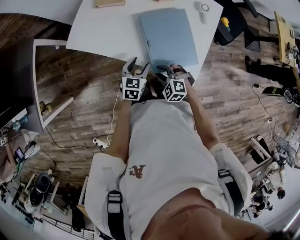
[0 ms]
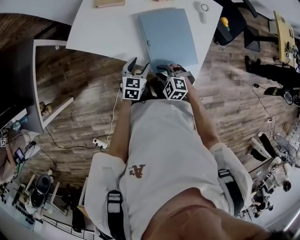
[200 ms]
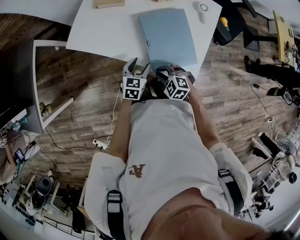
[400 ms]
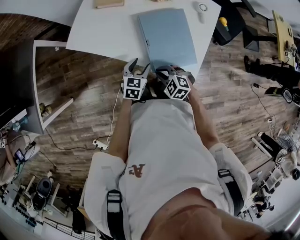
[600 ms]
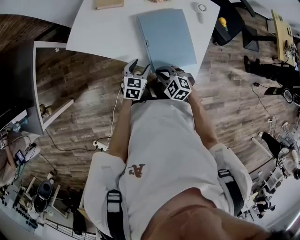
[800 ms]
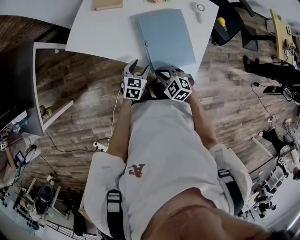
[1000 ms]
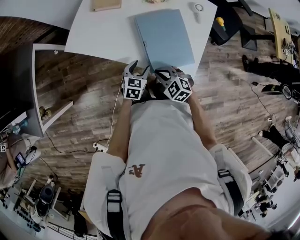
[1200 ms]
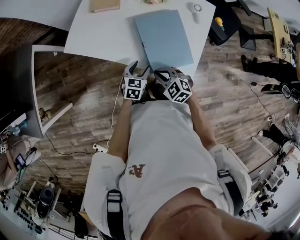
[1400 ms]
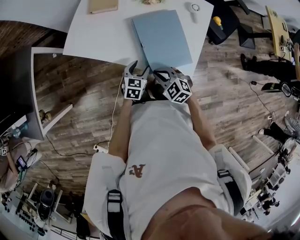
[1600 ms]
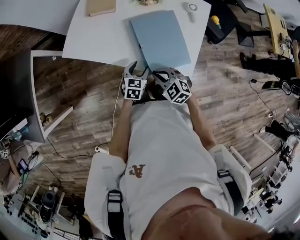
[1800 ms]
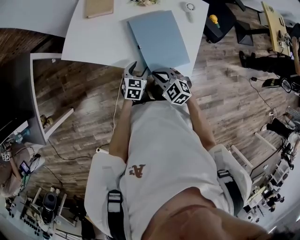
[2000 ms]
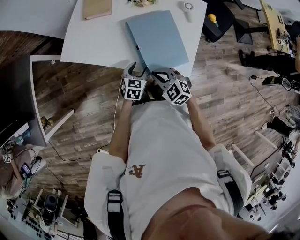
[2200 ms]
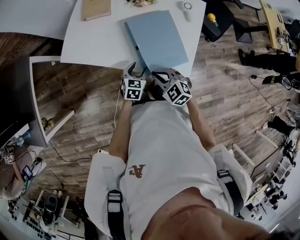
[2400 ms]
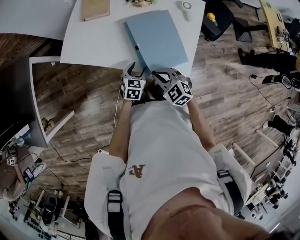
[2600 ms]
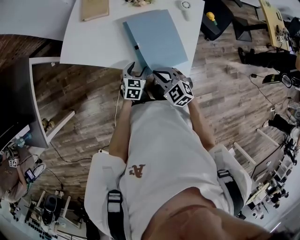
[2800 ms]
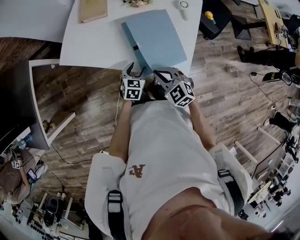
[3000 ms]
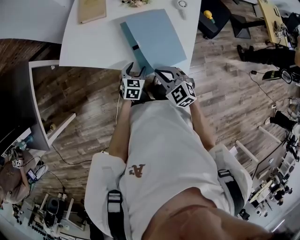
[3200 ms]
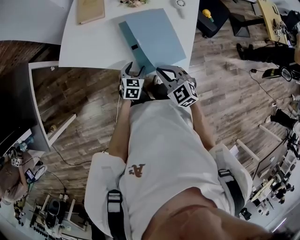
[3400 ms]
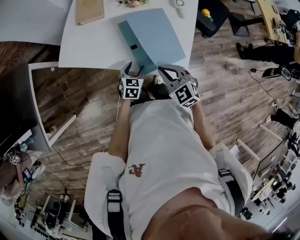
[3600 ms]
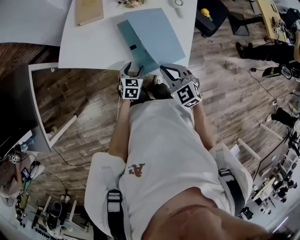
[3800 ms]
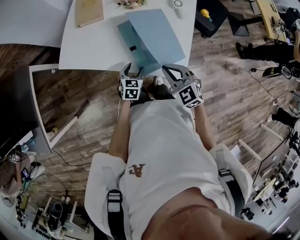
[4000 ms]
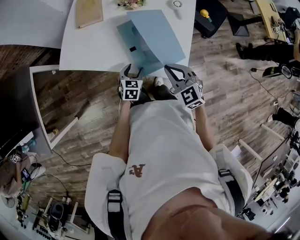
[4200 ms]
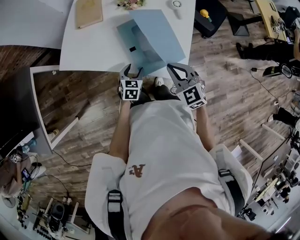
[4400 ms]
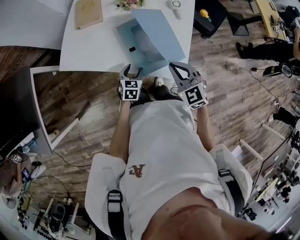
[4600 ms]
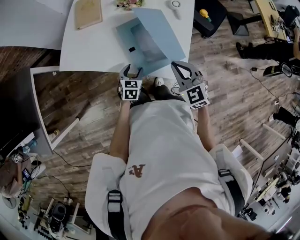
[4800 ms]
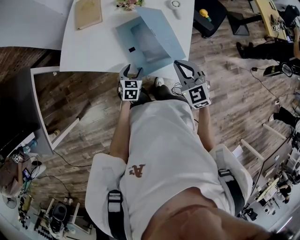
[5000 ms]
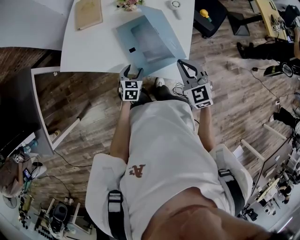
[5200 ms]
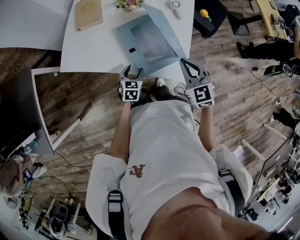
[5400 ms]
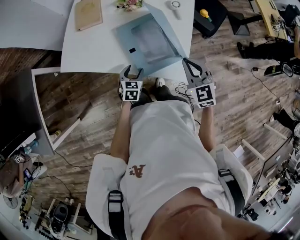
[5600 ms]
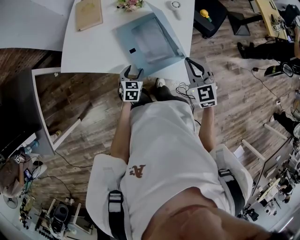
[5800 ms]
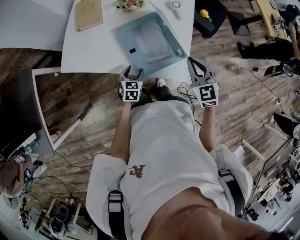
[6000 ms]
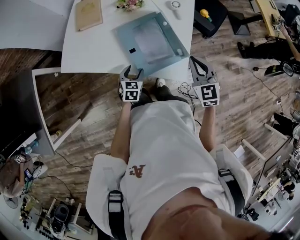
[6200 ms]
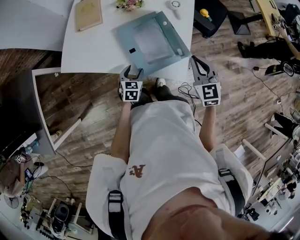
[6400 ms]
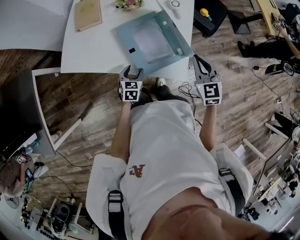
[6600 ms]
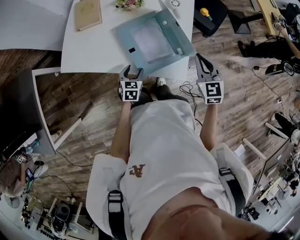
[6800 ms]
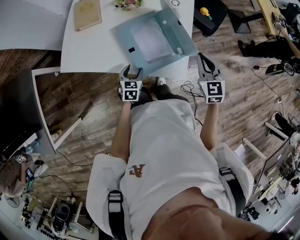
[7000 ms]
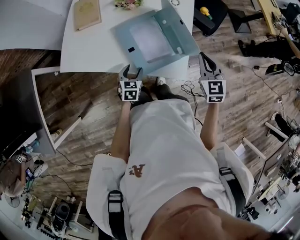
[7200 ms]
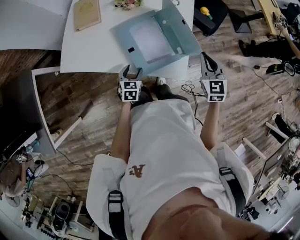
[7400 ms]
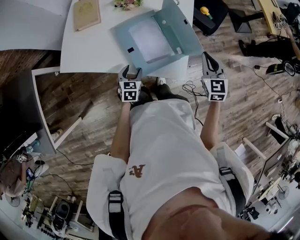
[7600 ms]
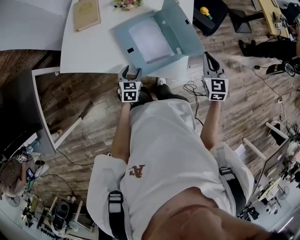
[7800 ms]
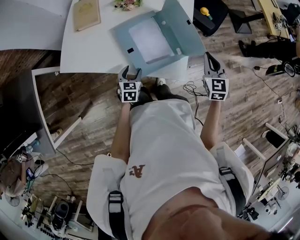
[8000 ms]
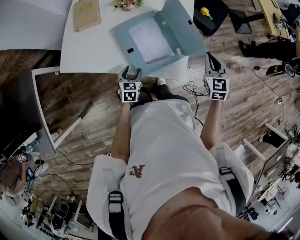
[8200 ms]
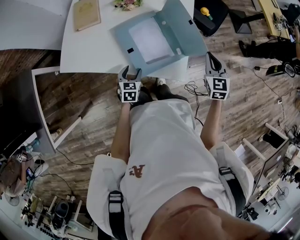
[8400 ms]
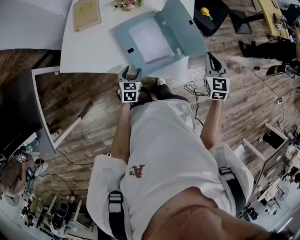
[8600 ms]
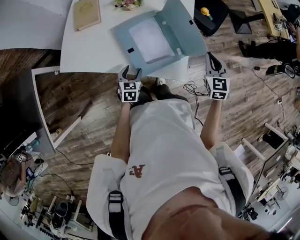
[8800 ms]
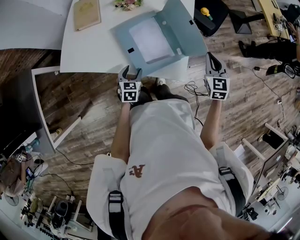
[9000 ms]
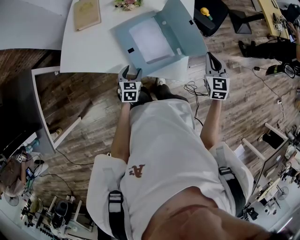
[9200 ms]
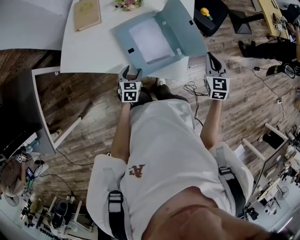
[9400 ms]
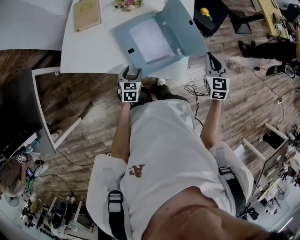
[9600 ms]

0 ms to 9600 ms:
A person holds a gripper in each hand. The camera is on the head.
0 ms to 1600 ms: The right gripper shifts about 5 cm upward, and closes its fingers.
1600 ms to 3200 ms: The right gripper moves upward, approximately 5 cm.
3200 ms to 4800 ms: The right gripper heads to the right and upward, covering some 10 cm.
4800 ms to 6400 ms: The right gripper heads to the right, covering some 10 cm.
6400 ms to 8000 ms: The right gripper goes about 10 cm to the right.
8000 ms to 9600 ms: Both grippers stay put.

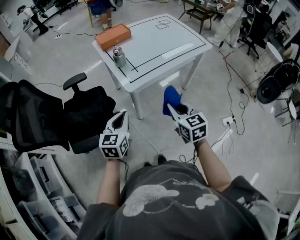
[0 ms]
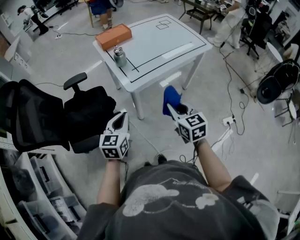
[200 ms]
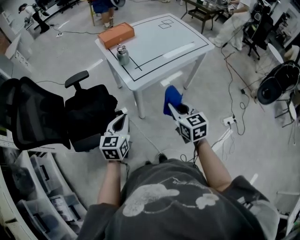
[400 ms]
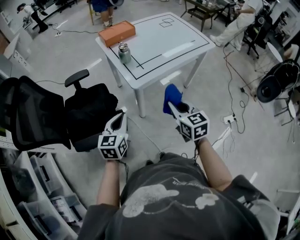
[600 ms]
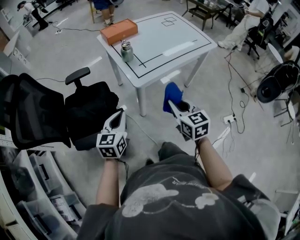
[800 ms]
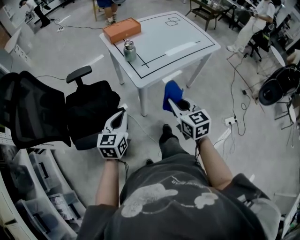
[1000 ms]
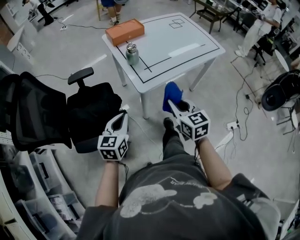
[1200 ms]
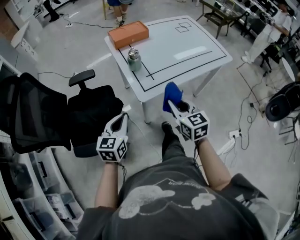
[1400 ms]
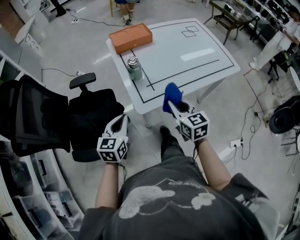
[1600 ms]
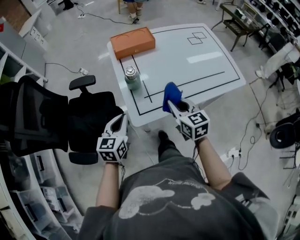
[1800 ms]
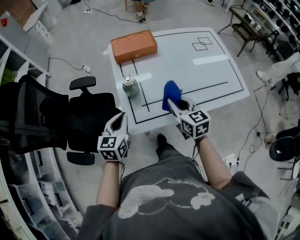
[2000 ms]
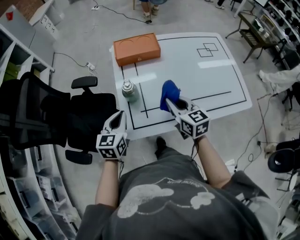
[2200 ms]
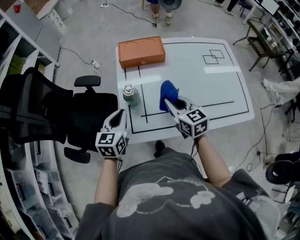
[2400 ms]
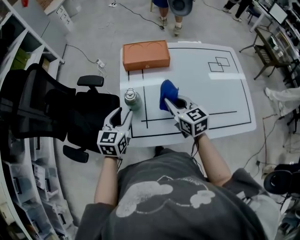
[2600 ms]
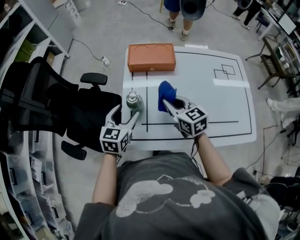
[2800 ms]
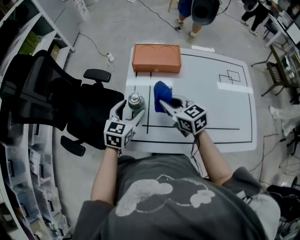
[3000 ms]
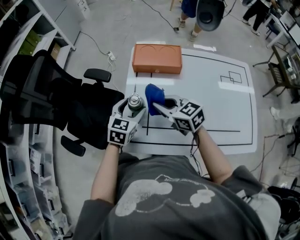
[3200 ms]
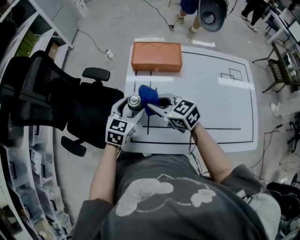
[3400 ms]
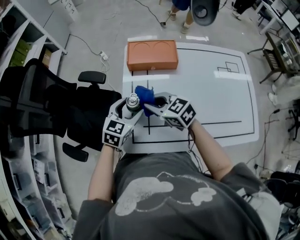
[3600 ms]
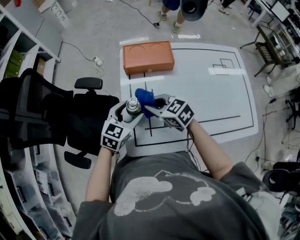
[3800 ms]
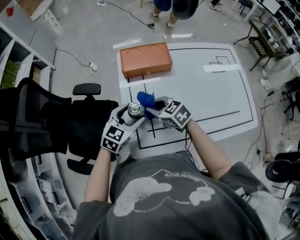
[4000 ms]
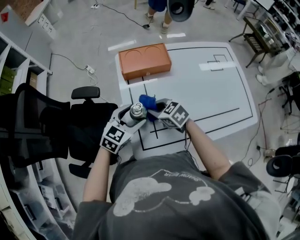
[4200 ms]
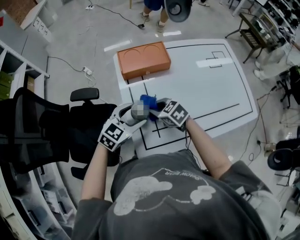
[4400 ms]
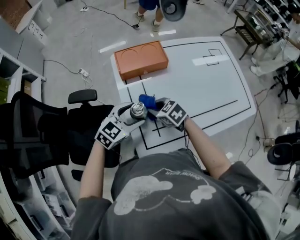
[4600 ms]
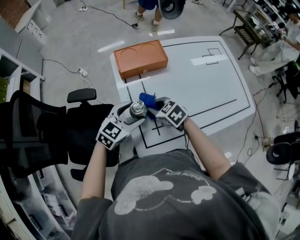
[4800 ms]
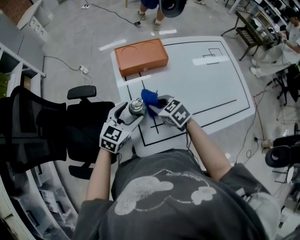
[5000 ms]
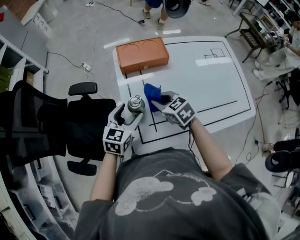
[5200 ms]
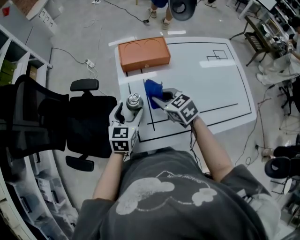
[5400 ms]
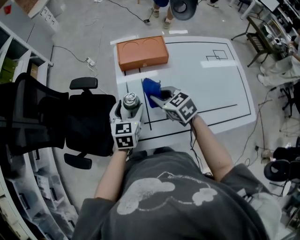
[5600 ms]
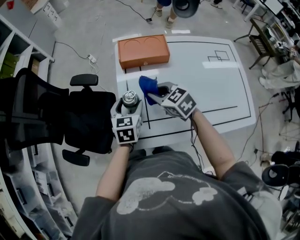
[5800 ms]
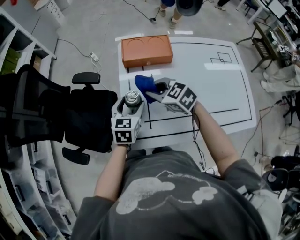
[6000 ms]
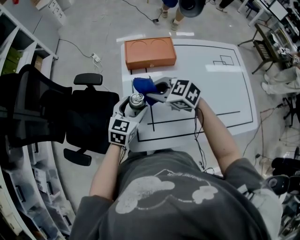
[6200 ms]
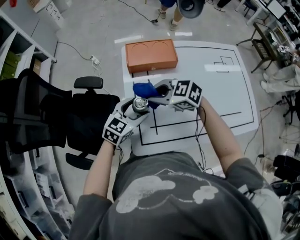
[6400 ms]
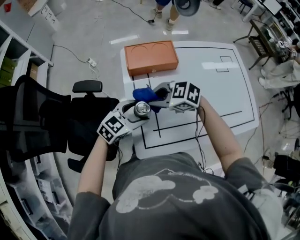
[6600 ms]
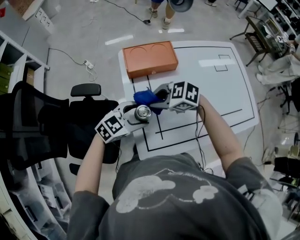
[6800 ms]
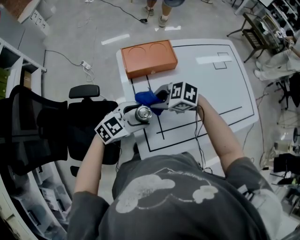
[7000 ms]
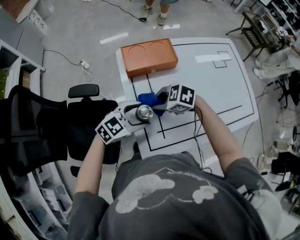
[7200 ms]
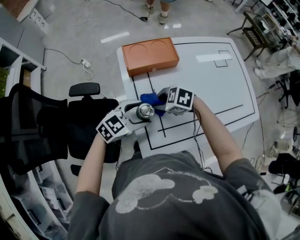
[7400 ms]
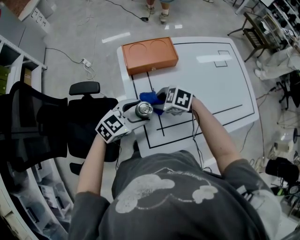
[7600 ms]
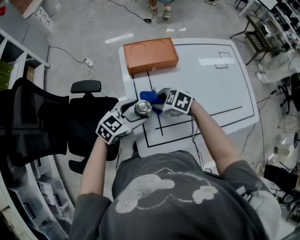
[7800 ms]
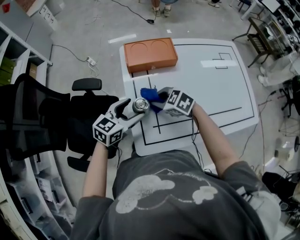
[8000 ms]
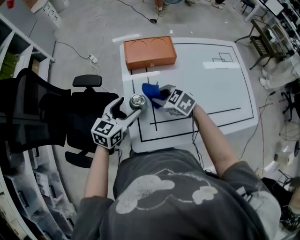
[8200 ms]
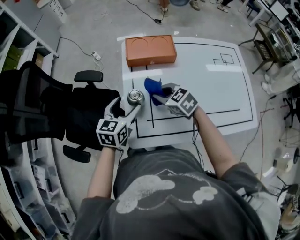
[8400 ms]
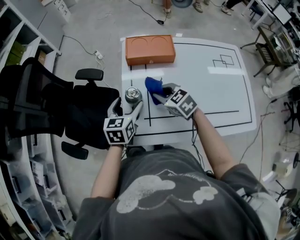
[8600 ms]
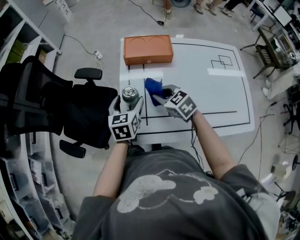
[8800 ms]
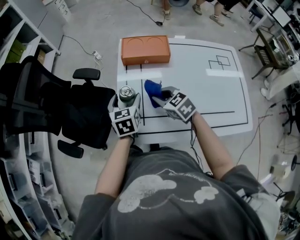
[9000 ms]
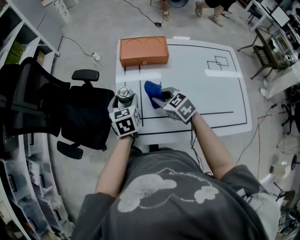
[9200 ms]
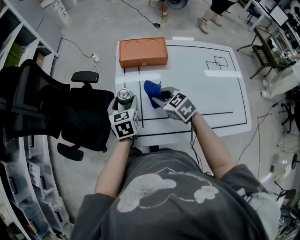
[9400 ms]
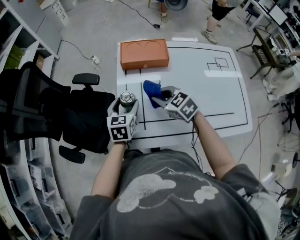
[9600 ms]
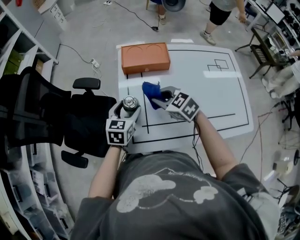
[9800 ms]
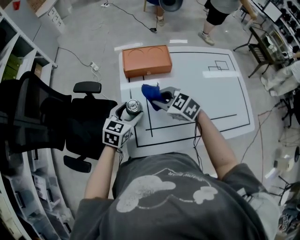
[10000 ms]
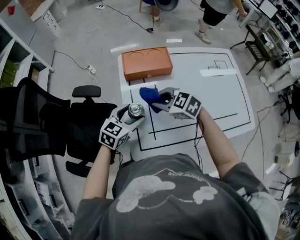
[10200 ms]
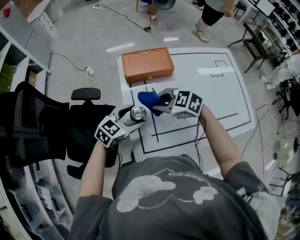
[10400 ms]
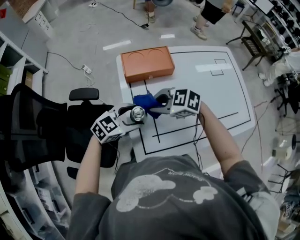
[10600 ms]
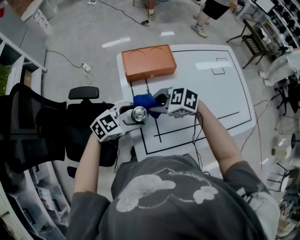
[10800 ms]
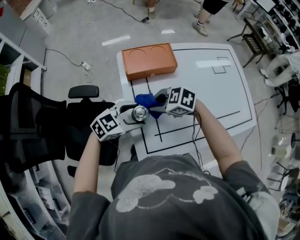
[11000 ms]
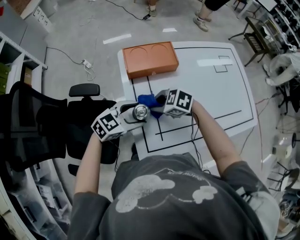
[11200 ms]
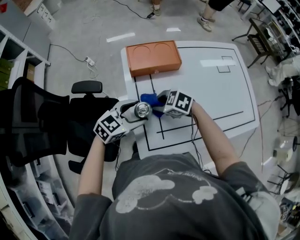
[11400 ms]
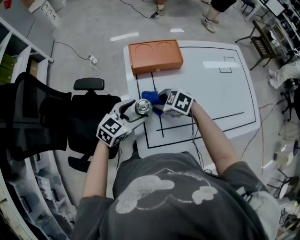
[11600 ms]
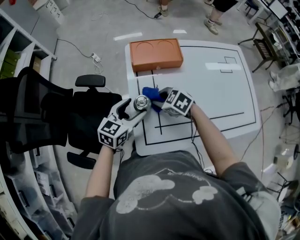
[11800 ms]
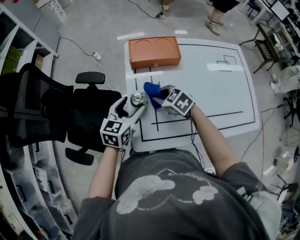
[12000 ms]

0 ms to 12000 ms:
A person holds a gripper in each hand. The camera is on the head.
0 ms to 1600 ms: The grippers both shift forward by about 15 cm.
1600 ms to 3000 ms: The left gripper ends up about 25 cm from where it was, and opens. Meanwhile the right gripper changes place by approximately 25 cm, and swivels approximately 40 degrees.
3000 ms to 4400 ms: The right gripper is displaced downward by about 10 cm, and changes its angle by some 20 degrees. The left gripper swivels about 40 degrees.
4400 ms to 6000 ms: The left gripper swivels roughly 50 degrees. The right gripper goes some 10 cm upward.
6000 ms to 7600 ms: The right gripper travels downward by roughly 10 cm, and turns by roughly 20 degrees. Meanwhile the left gripper turns by approximately 60 degrees.
7600 ms to 9000 ms: The left gripper turns by about 70 degrees. Meanwhile the right gripper moves some 10 cm, and rotates roughly 20 degrees.
9000 ms to 10400 ms: The right gripper moves about 5 cm. Meanwhile the left gripper rotates roughly 60 degrees.
10400 ms to 12000 ms: The left gripper rotates roughly 40 degrees. The right gripper heads downward, covering roughly 5 cm.

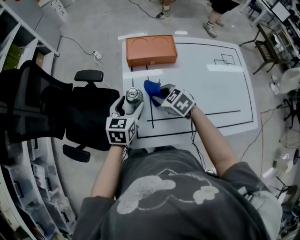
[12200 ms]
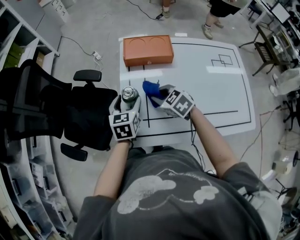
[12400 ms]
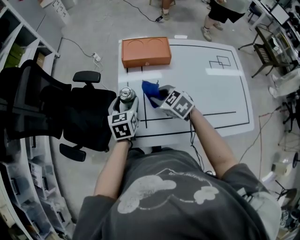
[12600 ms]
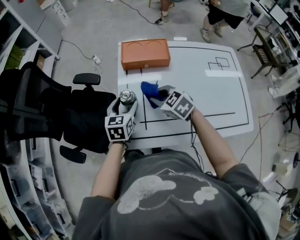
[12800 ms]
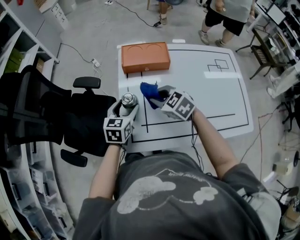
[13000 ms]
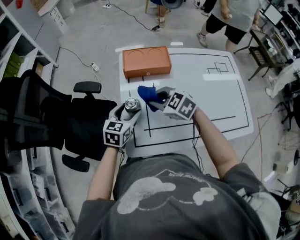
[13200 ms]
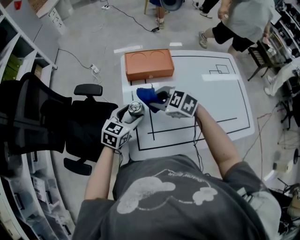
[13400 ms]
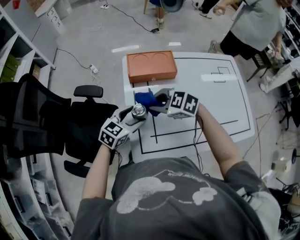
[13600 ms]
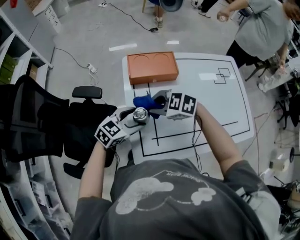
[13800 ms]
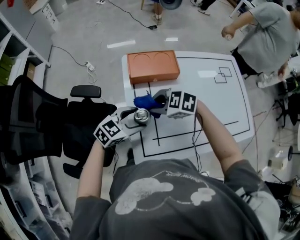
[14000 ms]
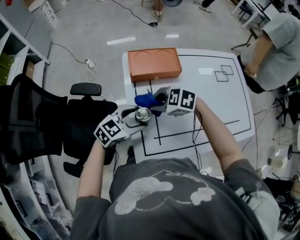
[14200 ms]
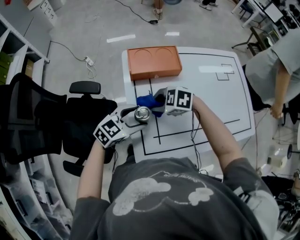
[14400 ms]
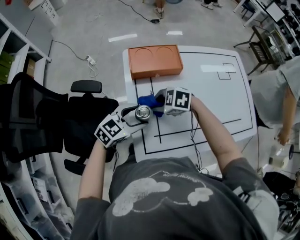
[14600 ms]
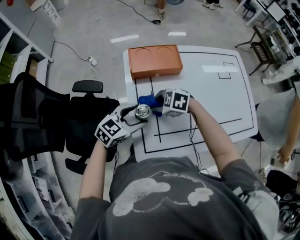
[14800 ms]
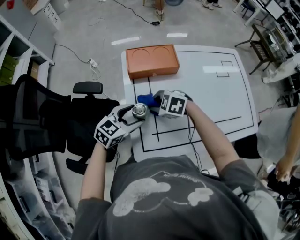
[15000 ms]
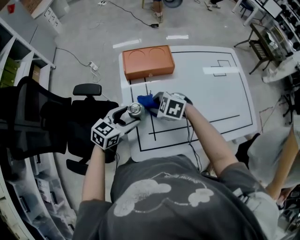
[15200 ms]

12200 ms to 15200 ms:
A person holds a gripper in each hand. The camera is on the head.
12200 ms to 13800 ms: The left gripper changes its angle by some 40 degrees; the right gripper goes about 5 cm upward, and turns by about 20 degrees.
13800 ms to 15200 ms: The right gripper shifts some 5 cm downward.
